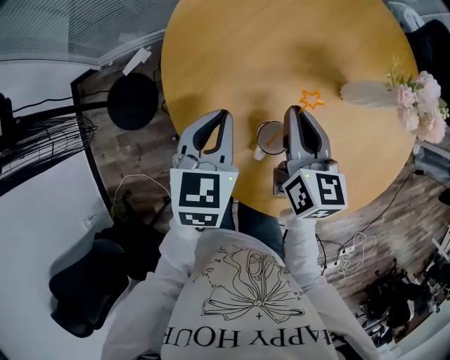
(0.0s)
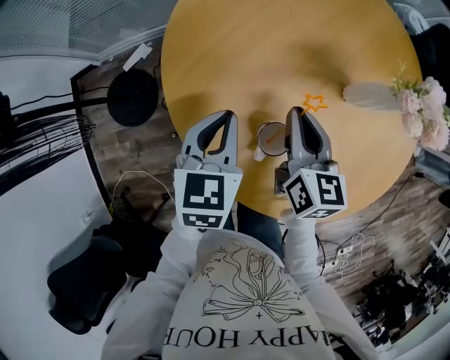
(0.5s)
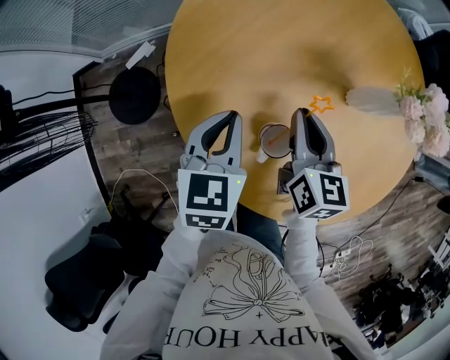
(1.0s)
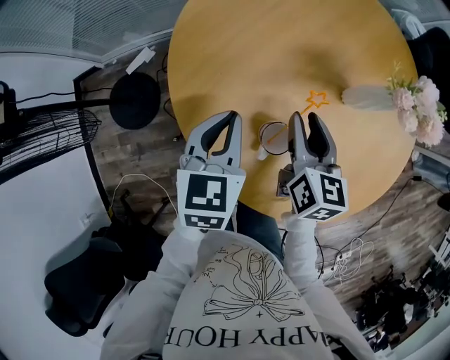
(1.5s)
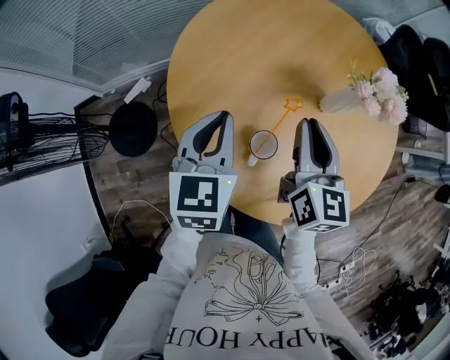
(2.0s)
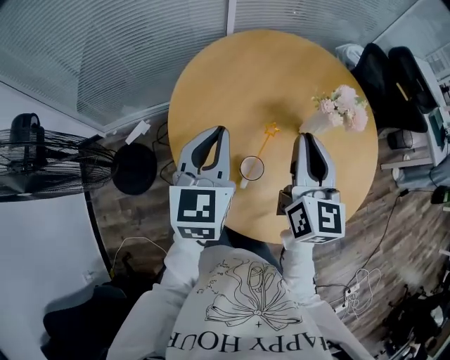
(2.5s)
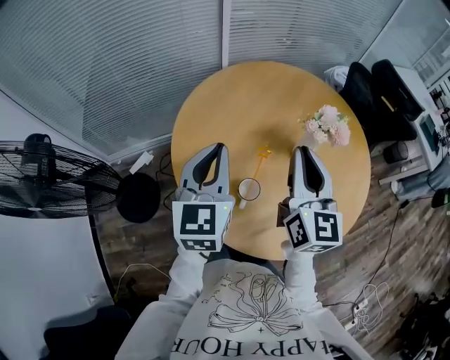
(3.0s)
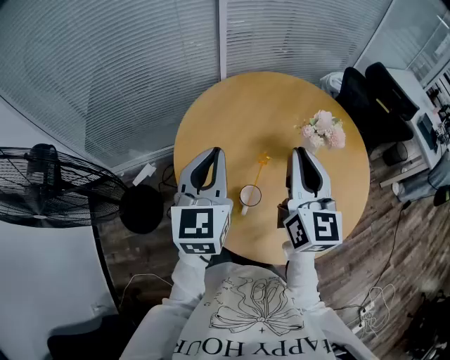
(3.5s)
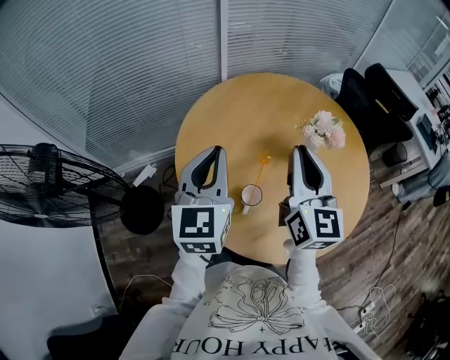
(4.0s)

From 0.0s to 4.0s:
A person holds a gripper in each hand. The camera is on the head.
From 0.0s to 2.0s: Both grippers move upward, approximately 10 cm.
From 2.0s to 4.0s: The two grippers go roughly 15 cm upward. The left gripper rotates approximately 20 degrees.

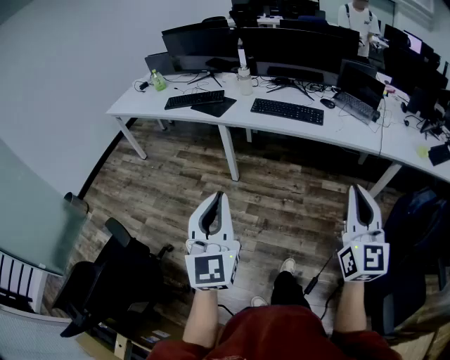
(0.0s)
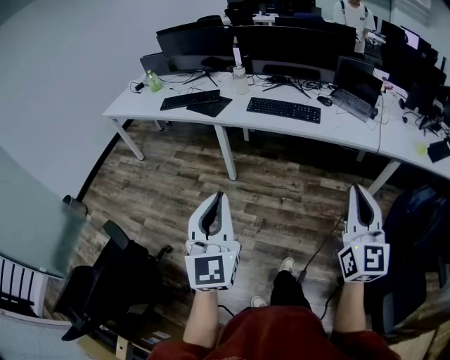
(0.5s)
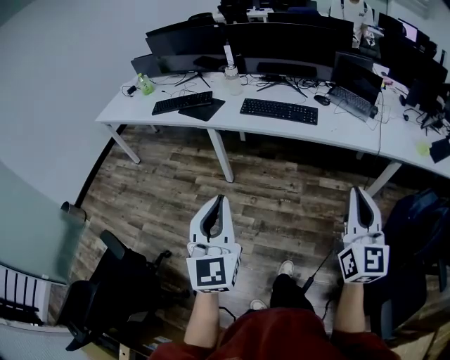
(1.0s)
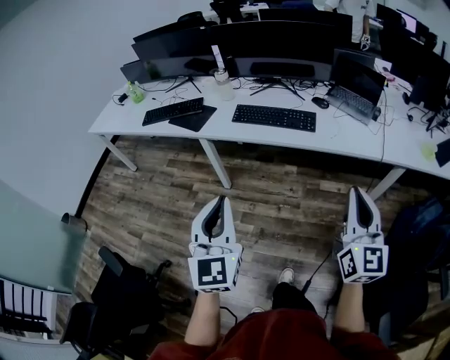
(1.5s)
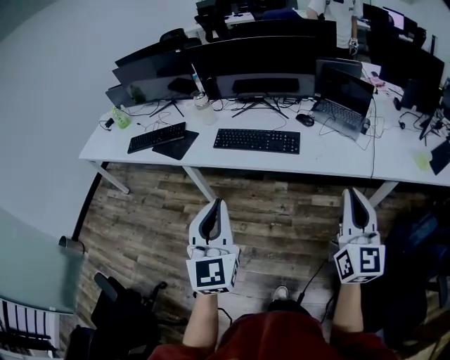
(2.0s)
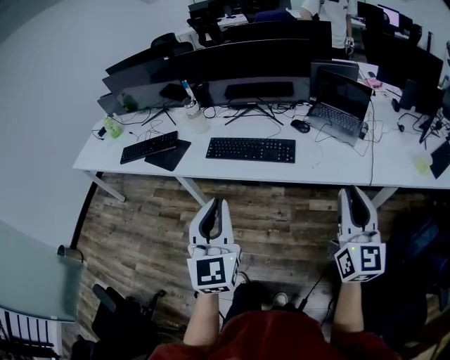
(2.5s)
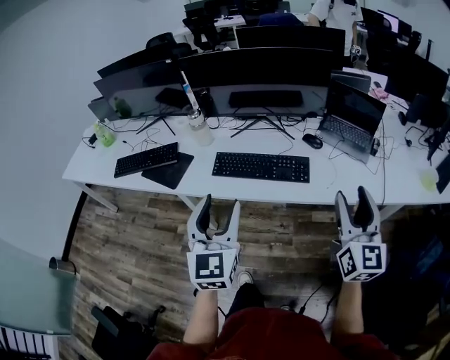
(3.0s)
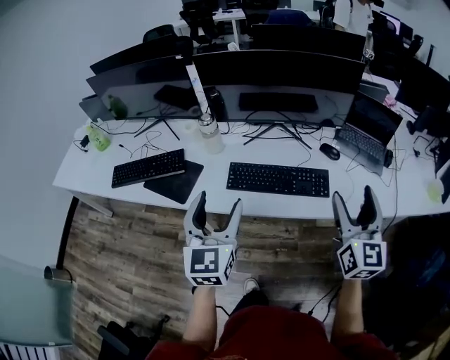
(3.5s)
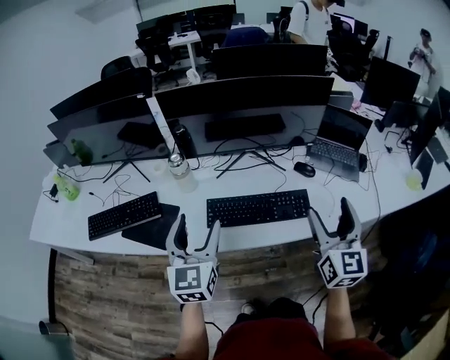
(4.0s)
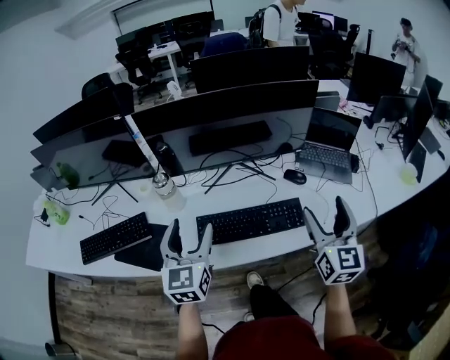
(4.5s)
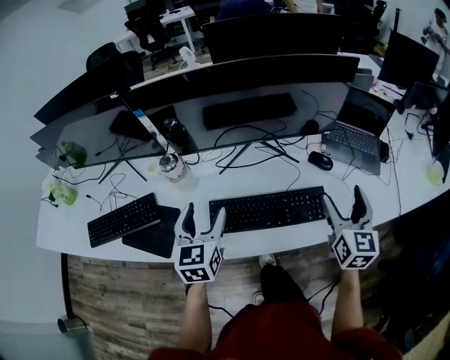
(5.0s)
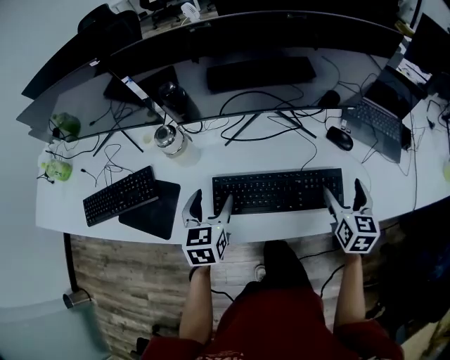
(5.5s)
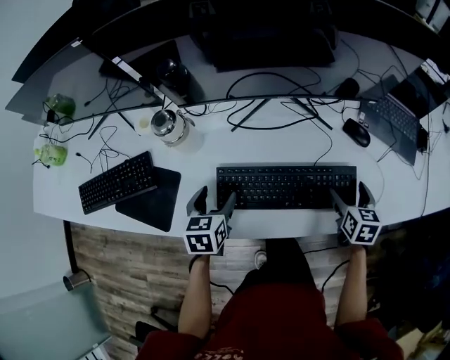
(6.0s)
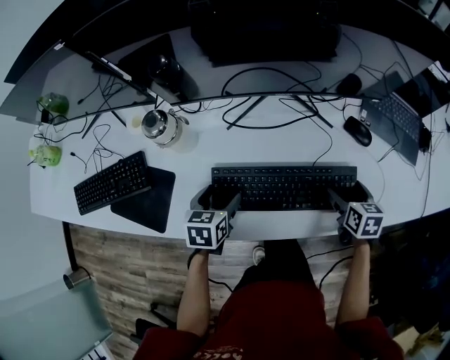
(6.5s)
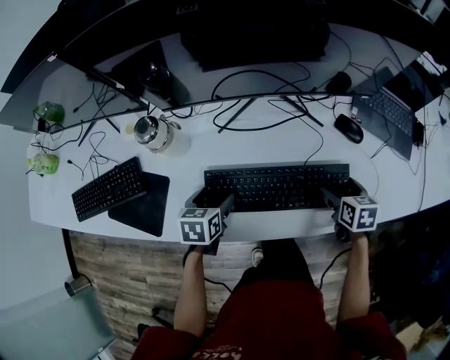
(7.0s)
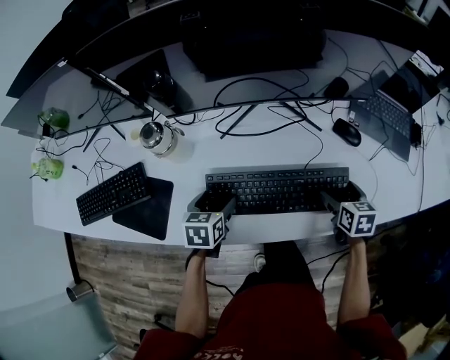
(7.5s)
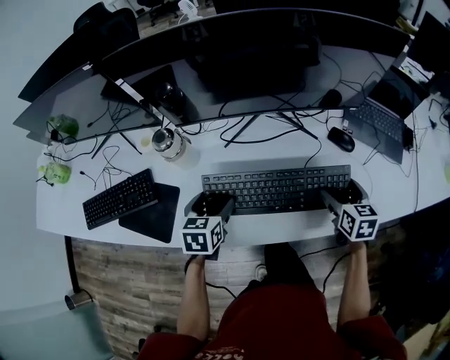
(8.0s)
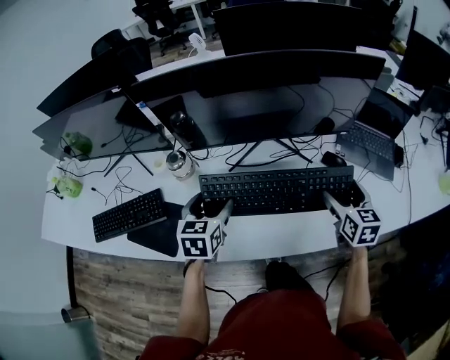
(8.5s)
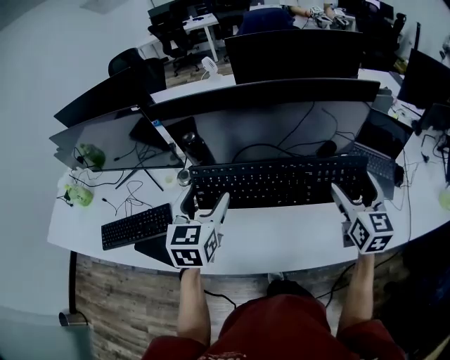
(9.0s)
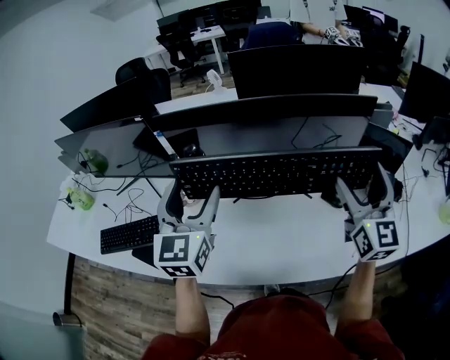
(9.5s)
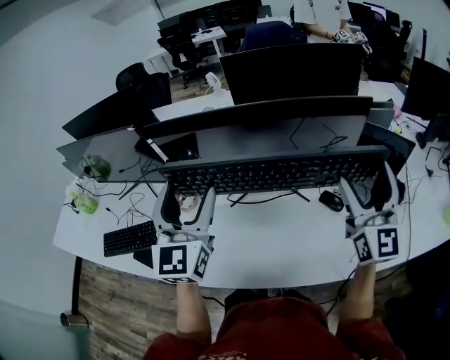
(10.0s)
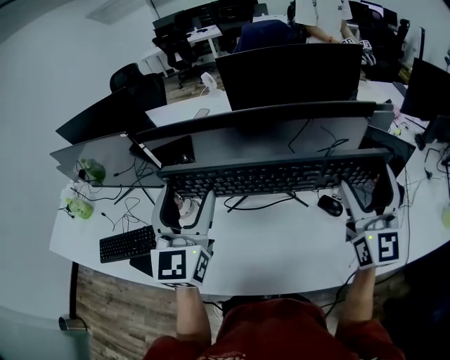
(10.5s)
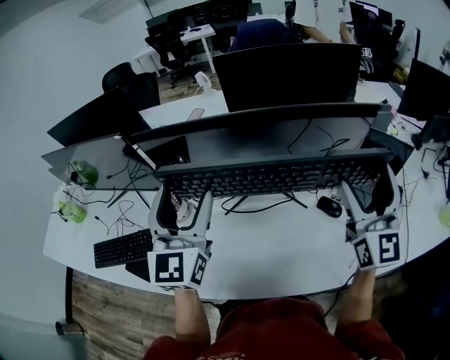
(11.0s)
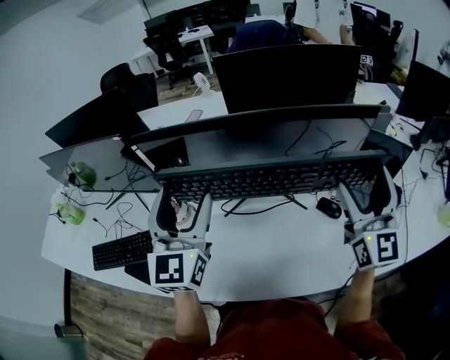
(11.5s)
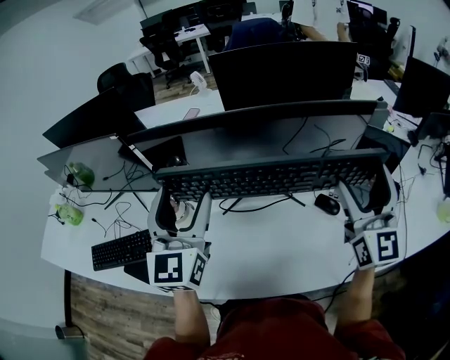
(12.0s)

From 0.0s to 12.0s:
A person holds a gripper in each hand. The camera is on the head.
From 0.0s to 2.0s: The grippers both shift forward and to the right by some 30 cm.
From 2.0s to 4.0s: The two grippers go some 40 cm forward and to the left. The right gripper opens up, while the left gripper opens up.
From 4.0s to 6.0s: Both grippers travel together downward and forward, some 35 cm. The left gripper tilts its fingers approximately 40 degrees downward. The right gripper tips its fingers downward by some 40 degrees.
From 6.0s to 8.0s: The grippers stay close to where they were, moving slightly.
From 8.0s to 10.0s: Both grippers move upward, some 35 cm. The right gripper tilts its fingers about 60 degrees upward. The left gripper points its fingers roughly 50 degrees further upward.
From 10.0s to 12.0s: The grippers move only a little.

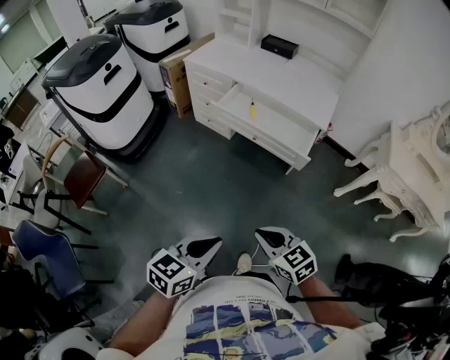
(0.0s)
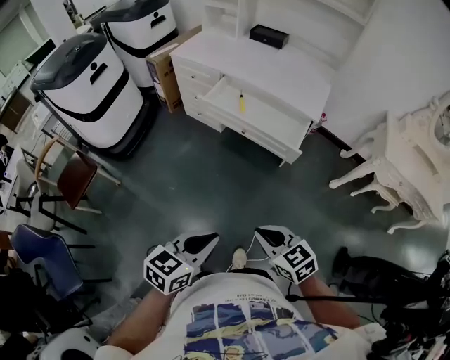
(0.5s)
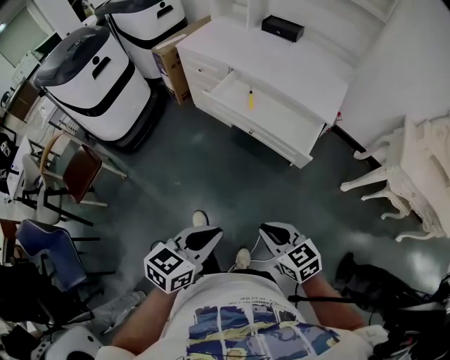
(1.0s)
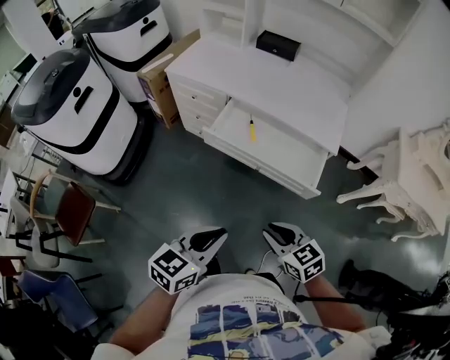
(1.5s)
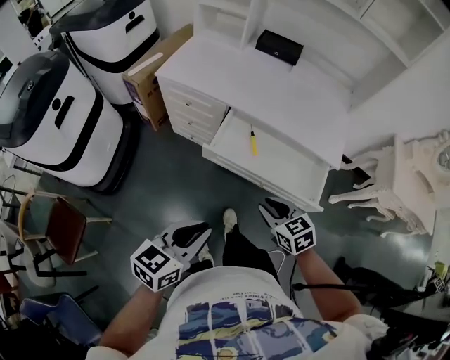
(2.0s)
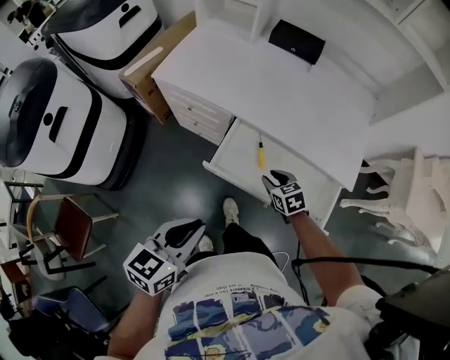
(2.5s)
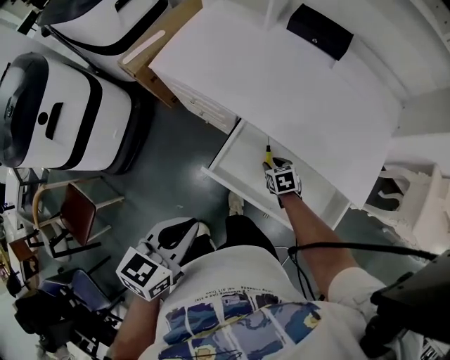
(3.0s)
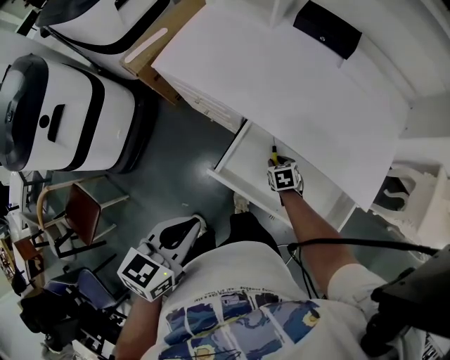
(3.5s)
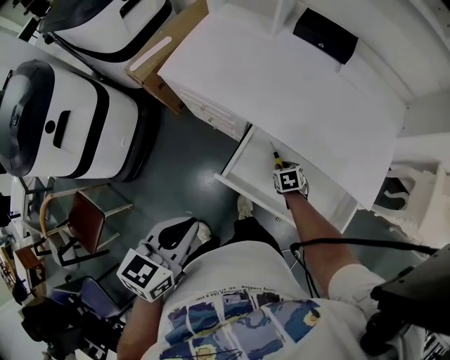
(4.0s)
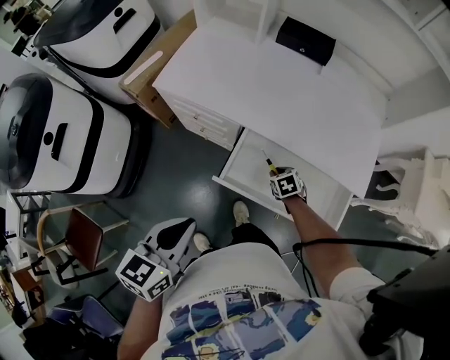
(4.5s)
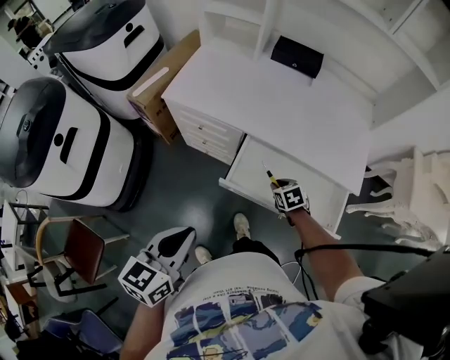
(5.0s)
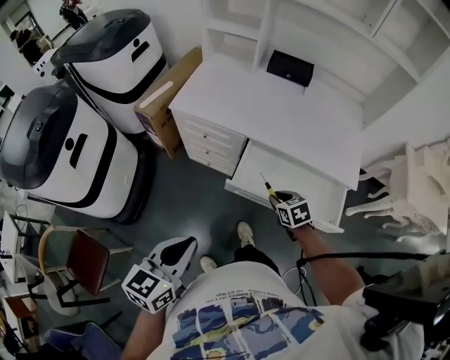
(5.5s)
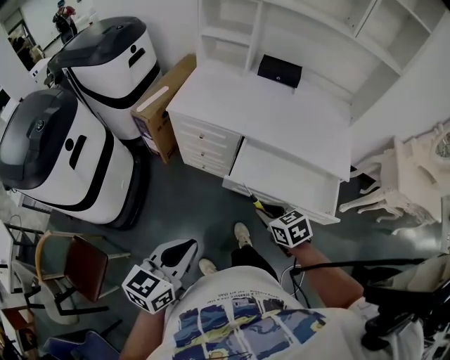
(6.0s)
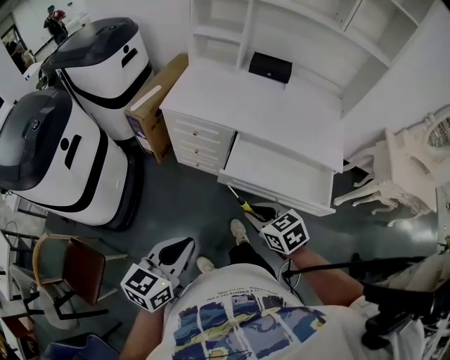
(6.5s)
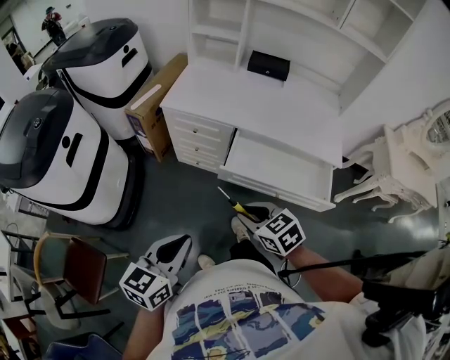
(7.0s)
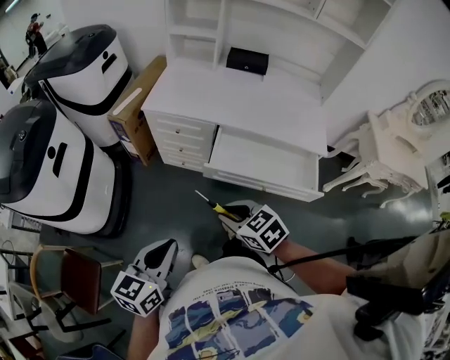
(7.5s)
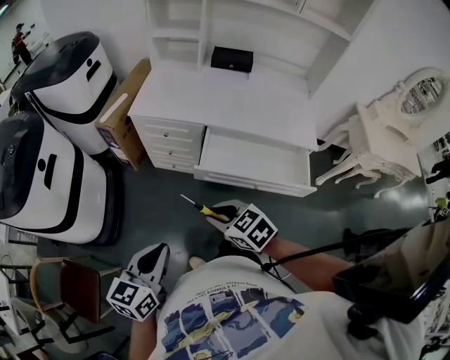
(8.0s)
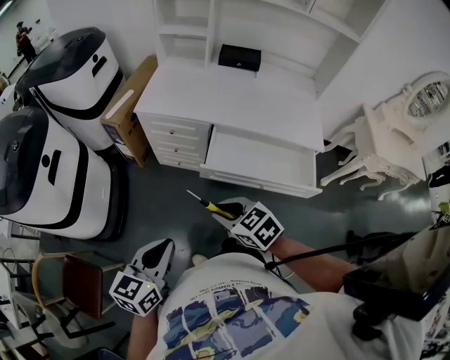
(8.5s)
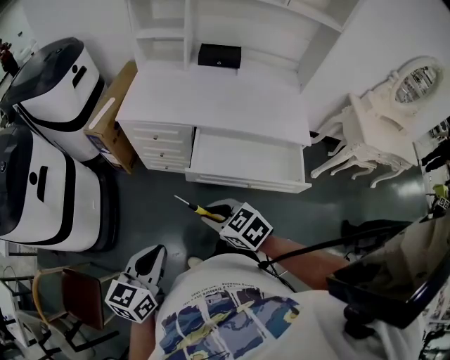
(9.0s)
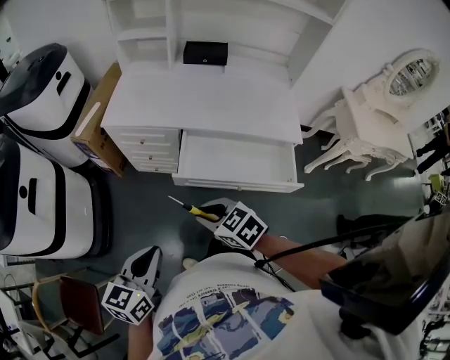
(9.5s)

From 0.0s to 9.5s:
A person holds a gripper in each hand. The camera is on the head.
From 0.0s to 2.0s: Both grippers travel together forward, roughly 35 cm. The right gripper opens.
From 2.0s to 4.0s: The right gripper moves forward and downward, roughly 40 cm, and swivels approximately 30 degrees; the left gripper moves forward, roughly 20 cm.
From 4.0s to 5.5s: The right gripper is displaced upward and backward by roughly 25 cm; the left gripper shifts approximately 15 cm backward and to the left.
From 5.5s to 7.5s: The right gripper moves to the left, backward and upward, some 25 cm. The left gripper heads backward, covering about 10 cm.
From 7.5s to 9.5s: The right gripper ends up about 5 cm from where it was, while the left gripper ends up roughly 5 cm from where it was.

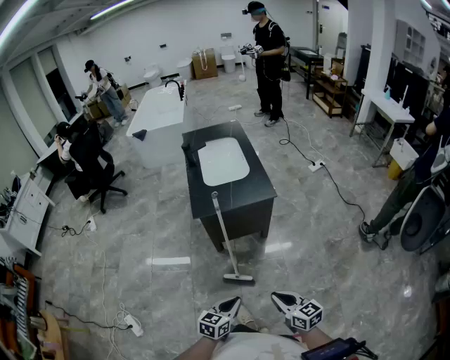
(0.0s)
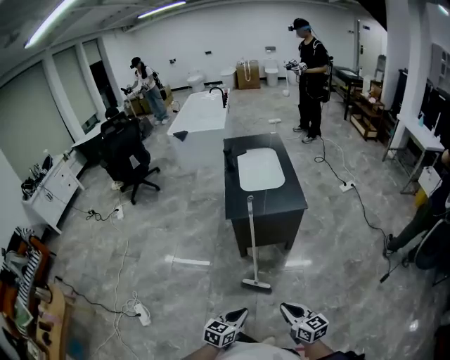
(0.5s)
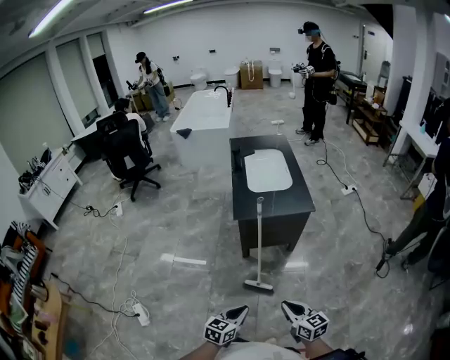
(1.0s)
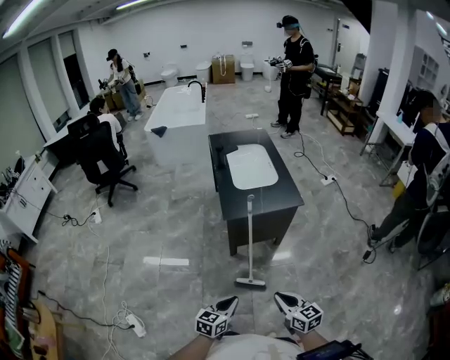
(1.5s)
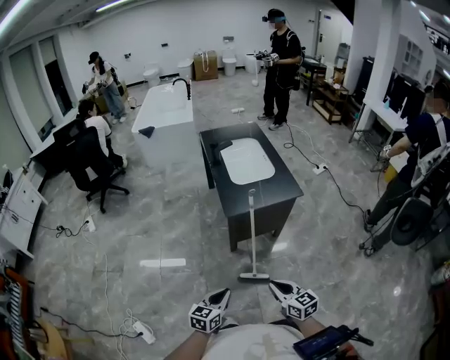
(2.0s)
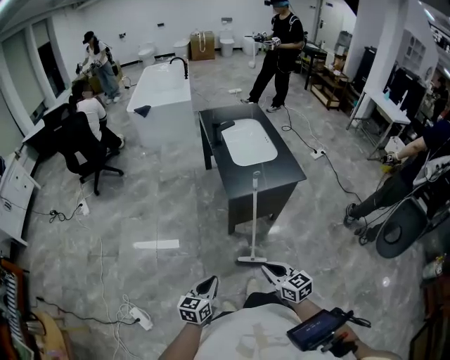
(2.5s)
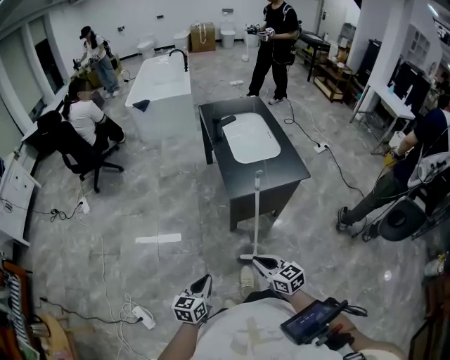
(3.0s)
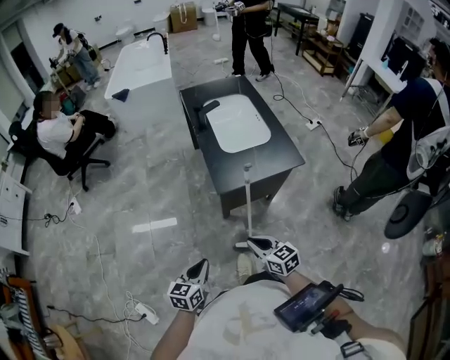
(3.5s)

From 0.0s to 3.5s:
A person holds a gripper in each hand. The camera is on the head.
From 0.0s to 2.0s: Both grippers travel together to the left, some 20 cm.
From 2.0s to 3.5s: The left gripper is displaced forward and to the left by about 15 cm. Meanwhile the right gripper moves forward, approximately 15 cm.
